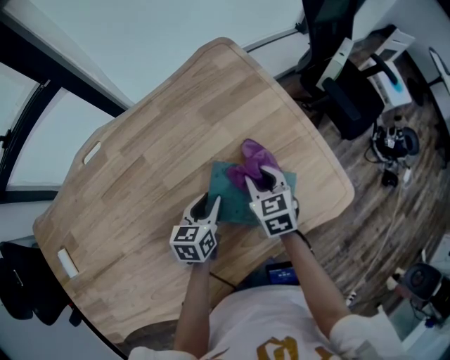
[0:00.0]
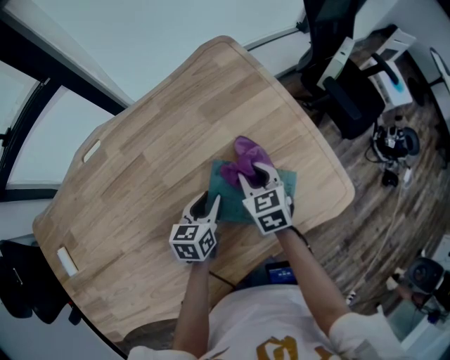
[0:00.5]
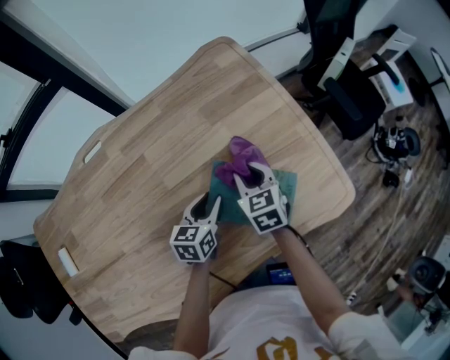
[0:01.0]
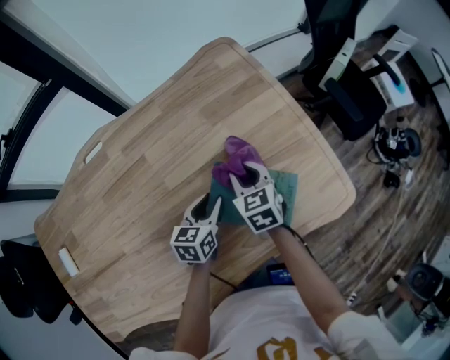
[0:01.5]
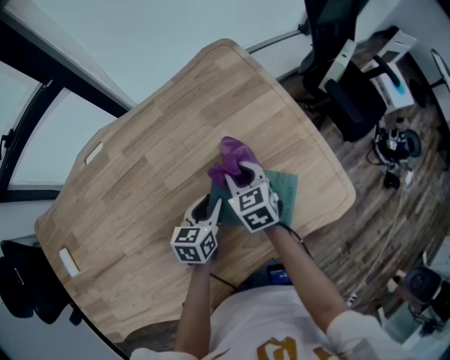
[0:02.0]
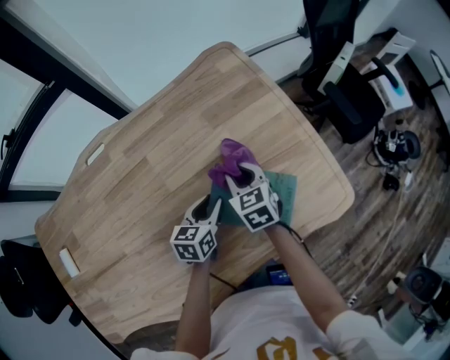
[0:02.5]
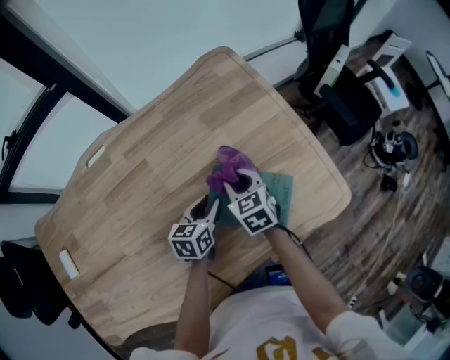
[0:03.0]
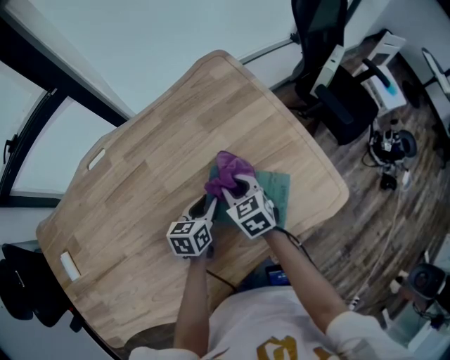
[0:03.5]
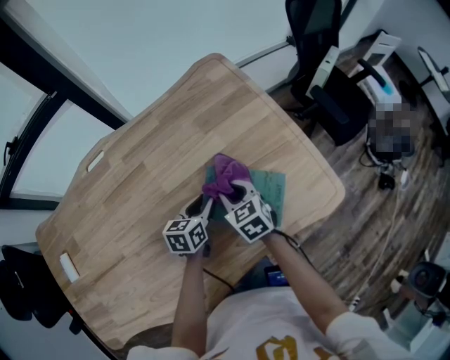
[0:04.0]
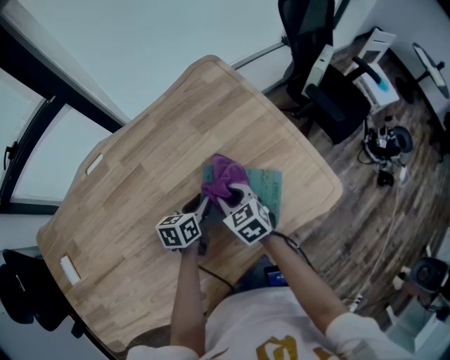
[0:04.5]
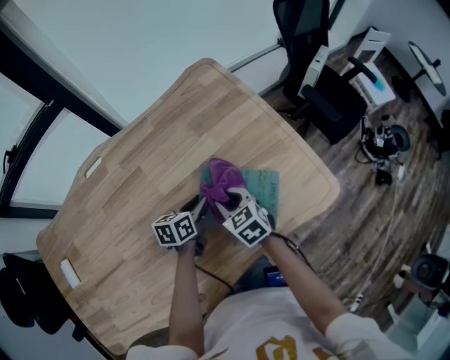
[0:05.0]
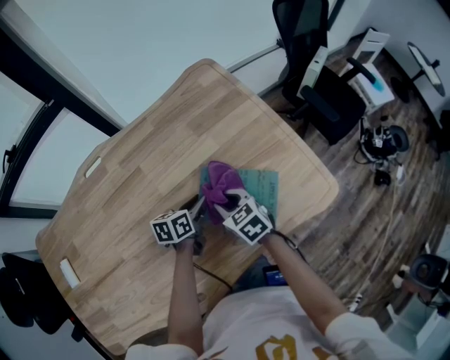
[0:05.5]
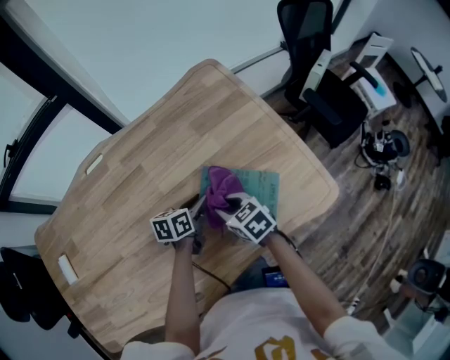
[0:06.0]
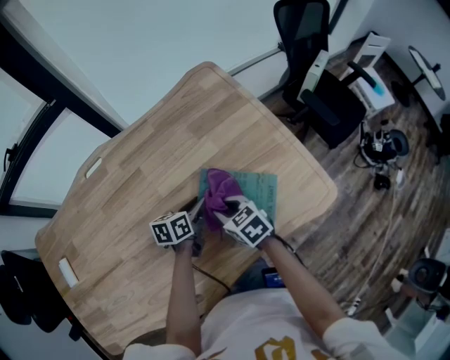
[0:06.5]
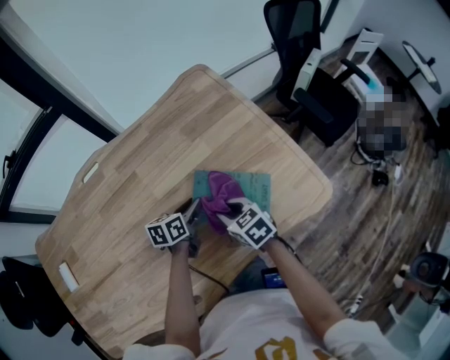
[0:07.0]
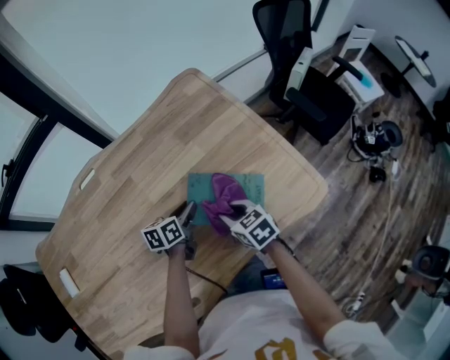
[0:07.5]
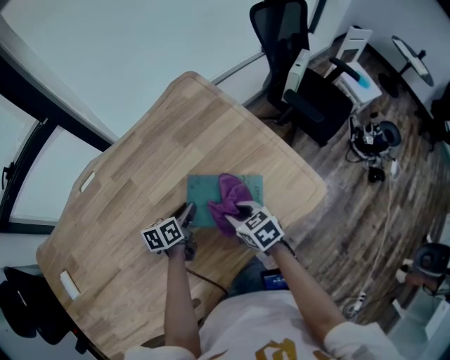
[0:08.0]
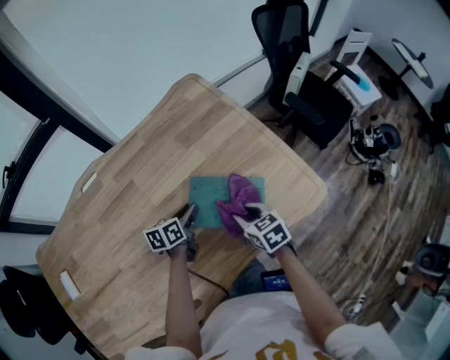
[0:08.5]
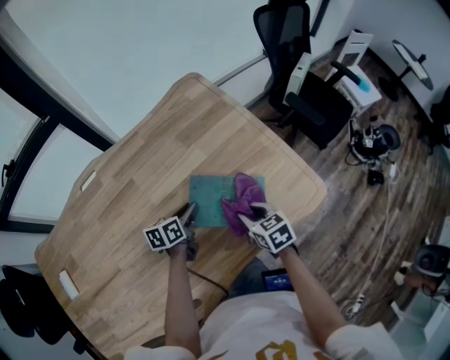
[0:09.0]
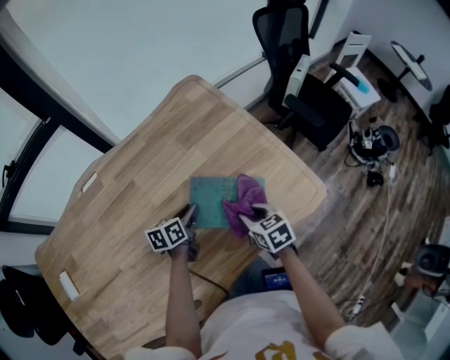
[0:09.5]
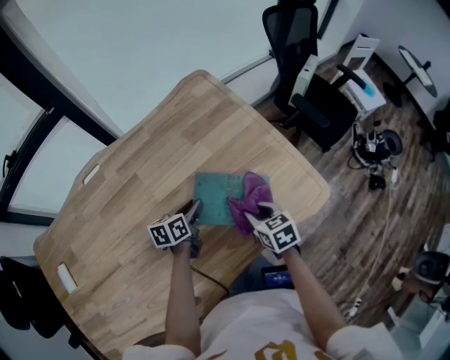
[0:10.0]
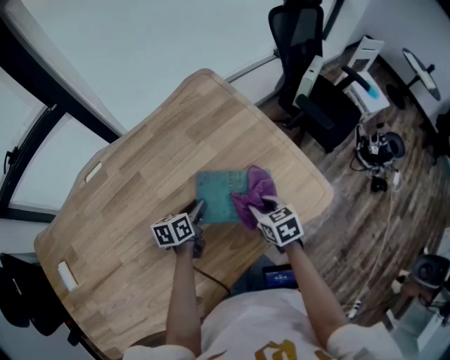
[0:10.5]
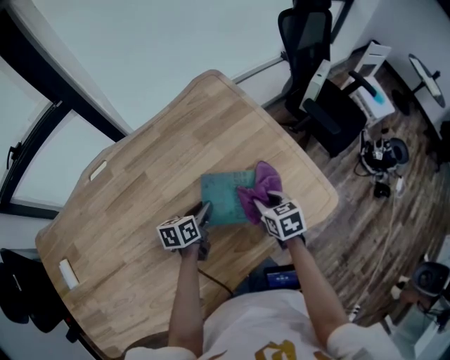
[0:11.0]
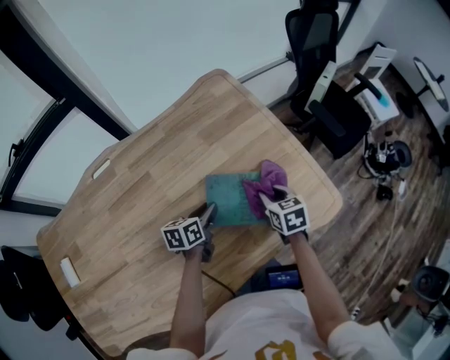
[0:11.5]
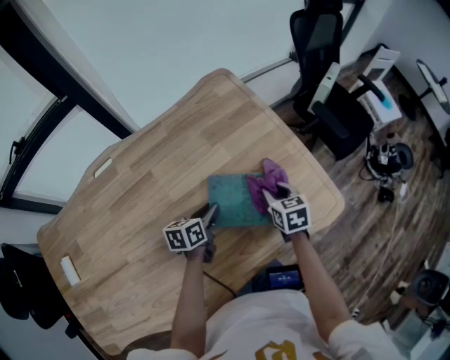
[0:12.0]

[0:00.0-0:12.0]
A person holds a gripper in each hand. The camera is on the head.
0.0 to 2.0 s: The right gripper moves to the left, about 5 cm.
2.0 to 4.0 s: The right gripper goes roughly 5 cm backward.
4.0 to 6.0 s: The grippers make only small movements.
6.0 to 8.0 s: The right gripper goes roughly 5 cm to the right.
8.0 to 10.0 s: The grippers move only a little.
10.0 to 12.0 s: The right gripper moves forward, some 10 cm.

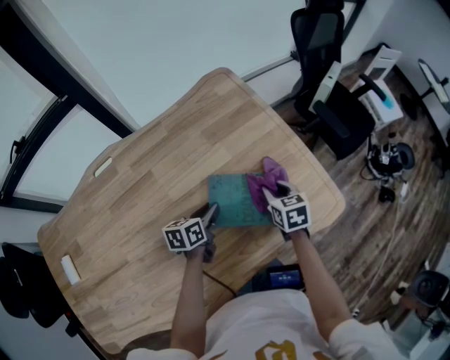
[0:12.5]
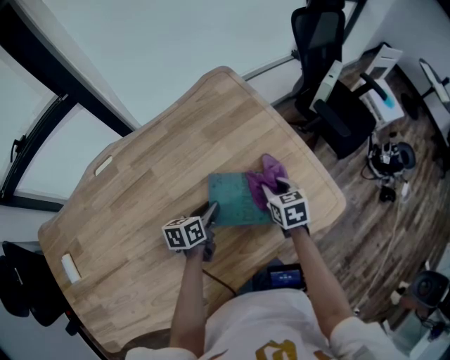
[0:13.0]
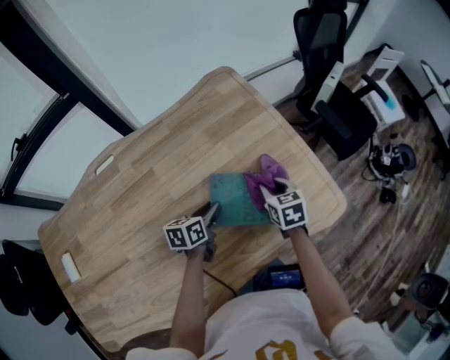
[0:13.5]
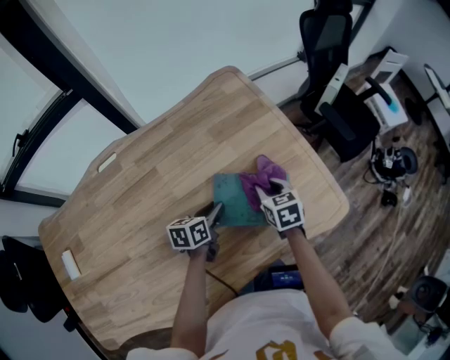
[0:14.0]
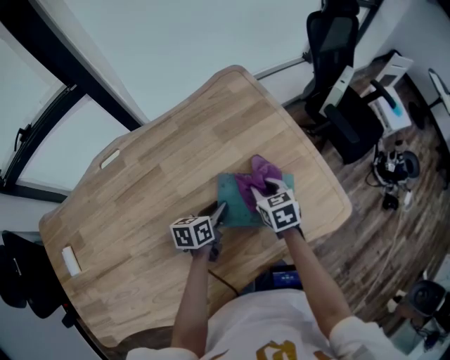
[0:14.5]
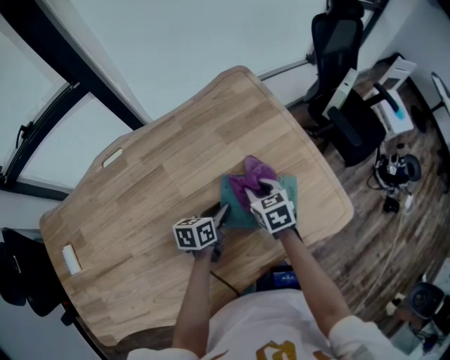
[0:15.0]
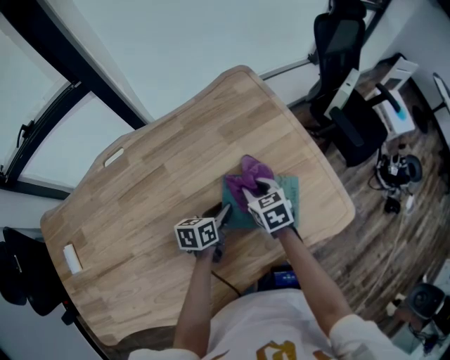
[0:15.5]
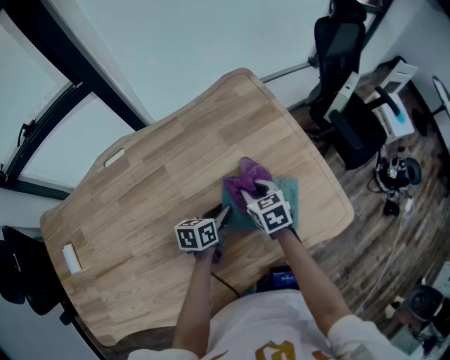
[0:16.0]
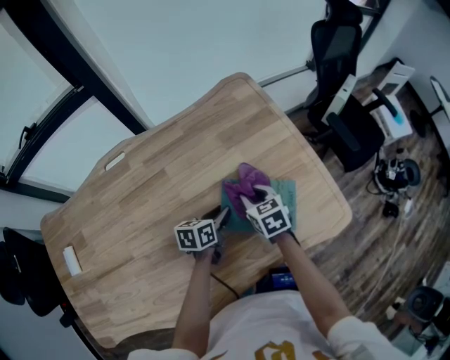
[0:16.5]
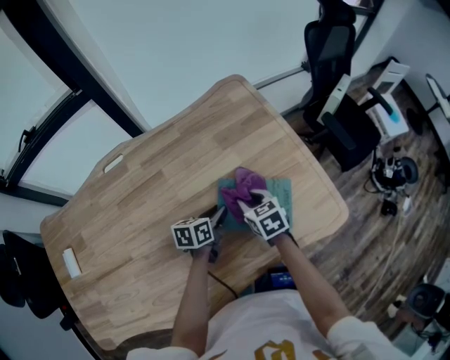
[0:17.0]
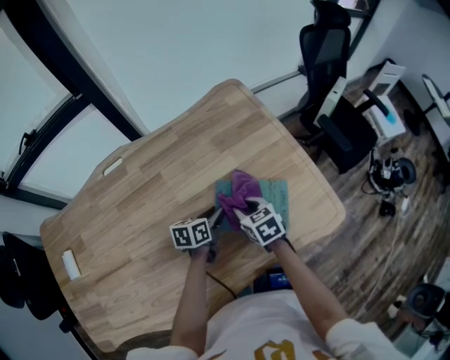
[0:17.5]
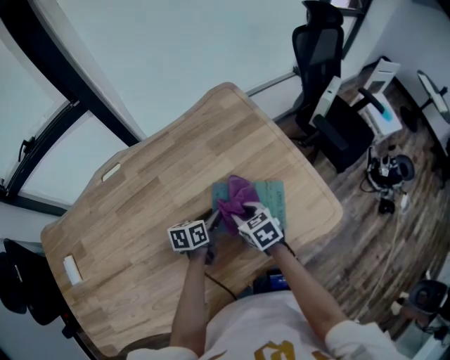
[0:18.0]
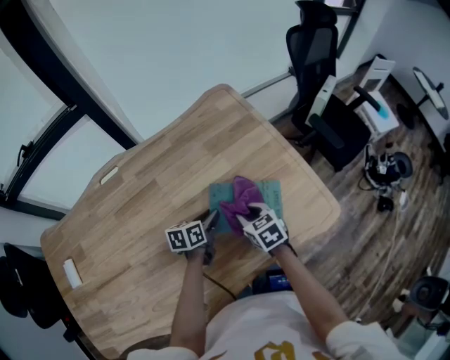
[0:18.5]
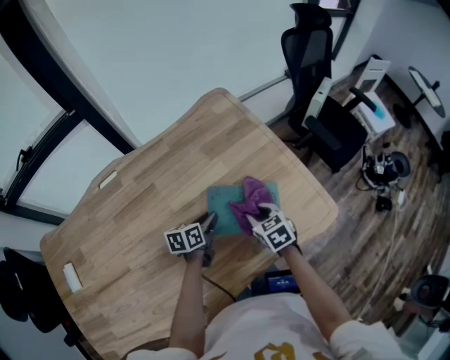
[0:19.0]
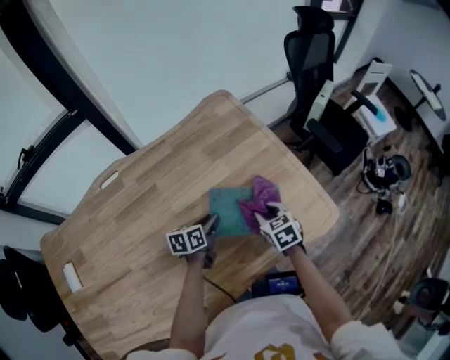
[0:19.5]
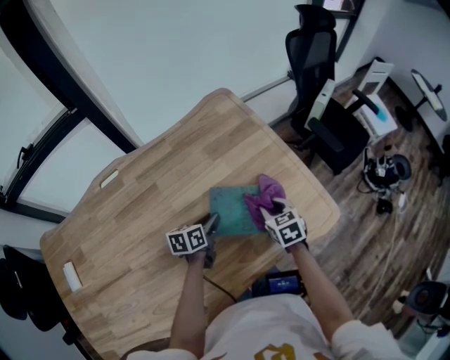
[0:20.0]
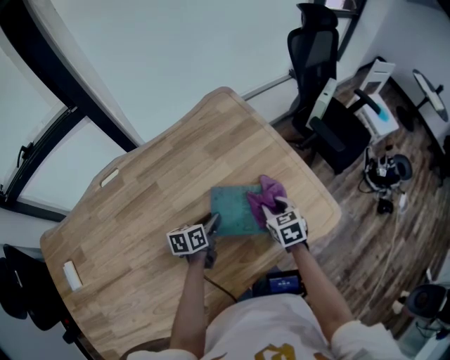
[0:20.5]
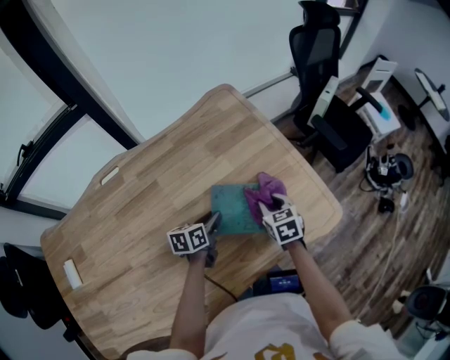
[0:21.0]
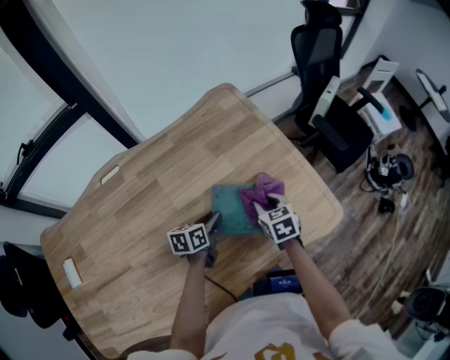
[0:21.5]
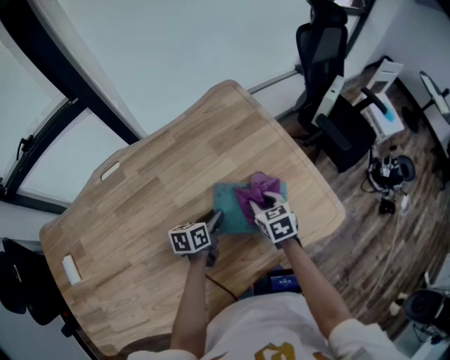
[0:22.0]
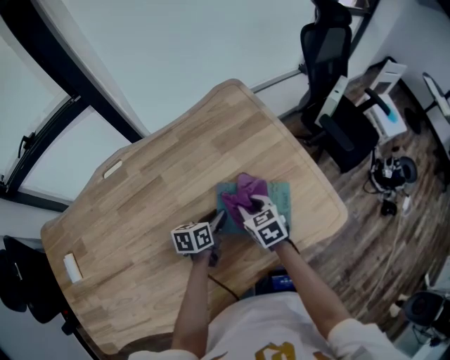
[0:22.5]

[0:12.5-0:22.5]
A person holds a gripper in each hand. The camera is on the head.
12.5 to 14.5 s: The right gripper moves to the left, about 5 cm.
14.5 to 16.5 s: The grippers make only small movements.
16.5 to 18.5 s: The right gripper moves backward, some 5 cm.
18.5 to 20.5 s: The right gripper moves to the right, roughly 10 cm.
20.5 to 22.5 s: The right gripper travels to the left by about 10 cm.

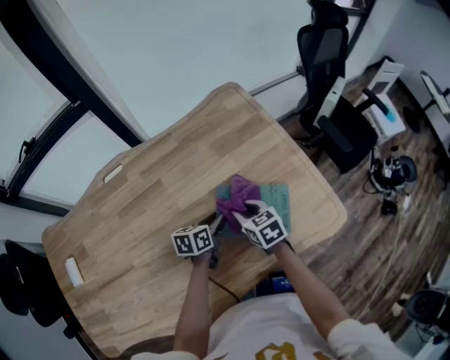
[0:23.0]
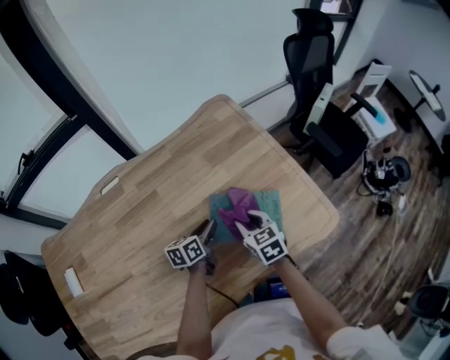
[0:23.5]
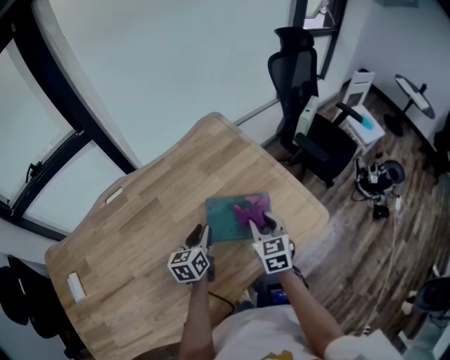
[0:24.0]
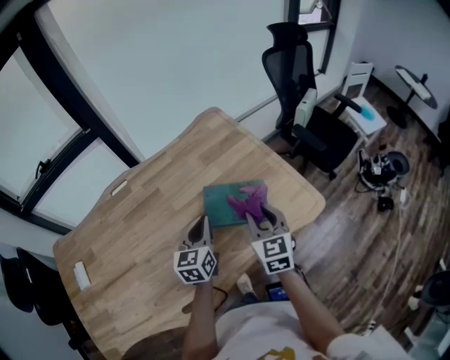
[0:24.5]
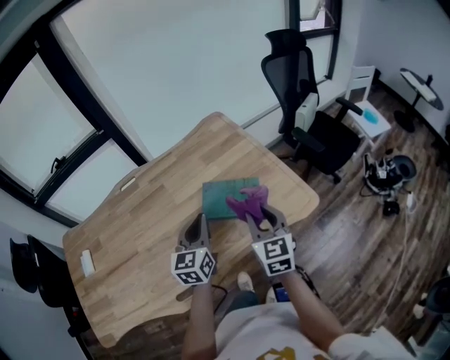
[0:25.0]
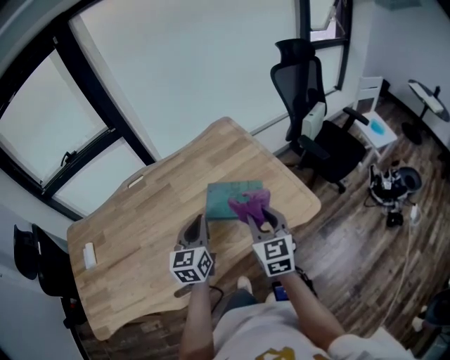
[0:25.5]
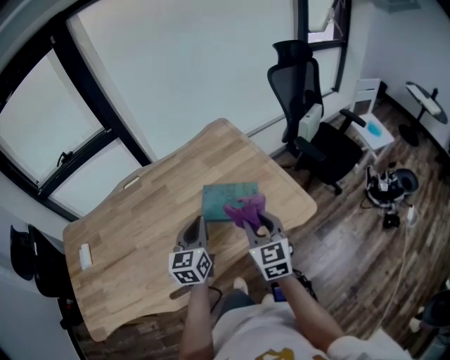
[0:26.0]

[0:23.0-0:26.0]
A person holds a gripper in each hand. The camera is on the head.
23.0 to 24.5 s: The left gripper travels upward and backward by about 20 cm, changes its angle by approximately 40 degrees, and closes up. Meanwhile the right gripper travels upward, to the right and backward by approximately 20 cm, and turns by about 40 degrees.
24.5 to 26.0 s: The right gripper is displaced backward by roughly 5 cm, while the left gripper goes roughly 10 cm backward and upward.

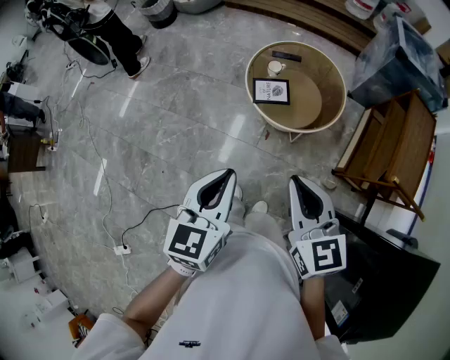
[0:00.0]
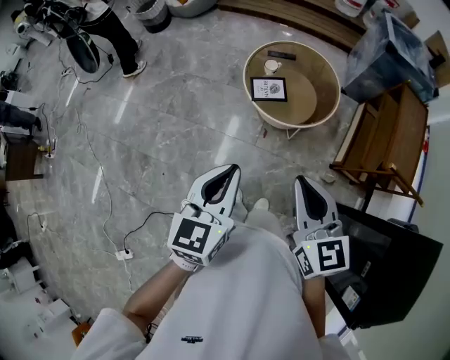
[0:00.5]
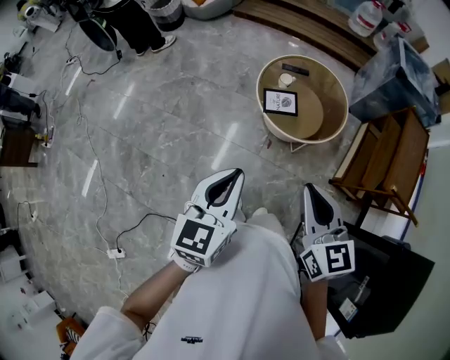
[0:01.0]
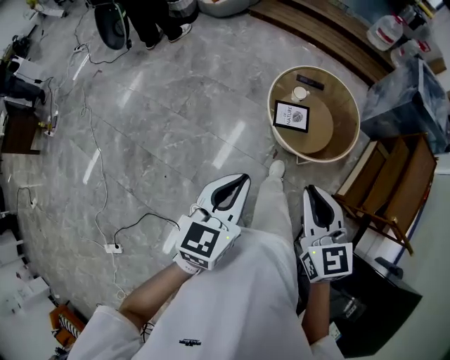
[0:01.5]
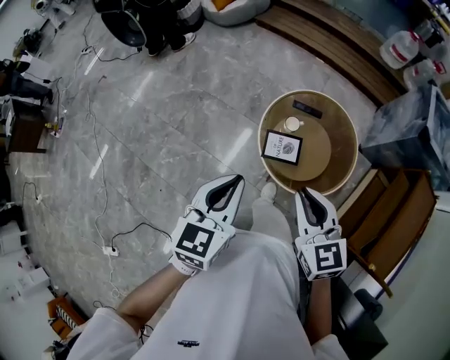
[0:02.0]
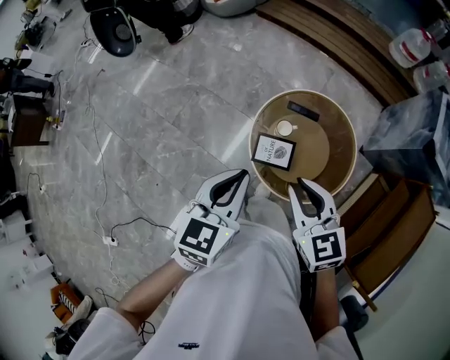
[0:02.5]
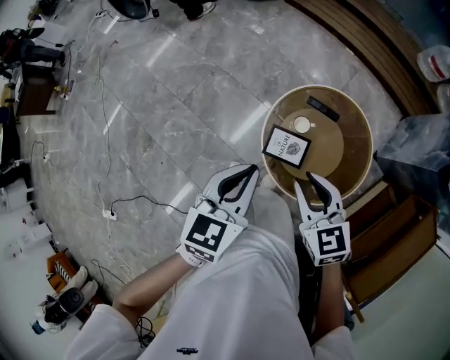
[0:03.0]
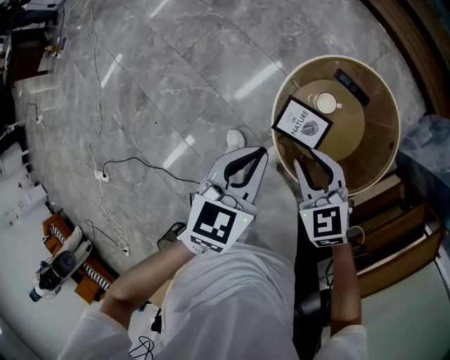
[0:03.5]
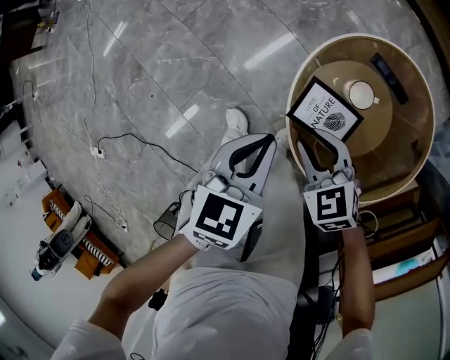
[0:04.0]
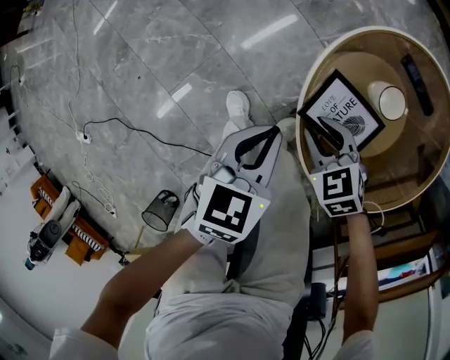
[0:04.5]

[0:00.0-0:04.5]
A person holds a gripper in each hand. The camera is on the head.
0.0 to 2.0 s: The two grippers go some 25 cm forward.
2.0 to 4.5 s: The grippers both shift downward by approximately 50 cm. The right gripper tips its fingers downward by some 30 degrees, and opens its fingers. Meanwhile the left gripper turns by some 30 degrees.
